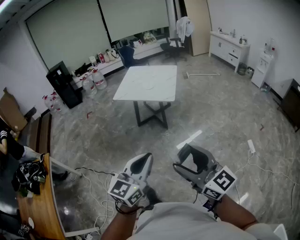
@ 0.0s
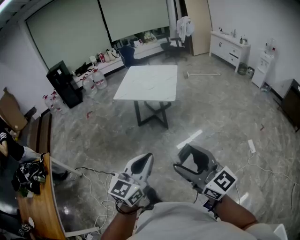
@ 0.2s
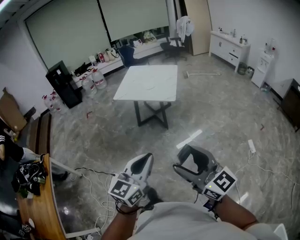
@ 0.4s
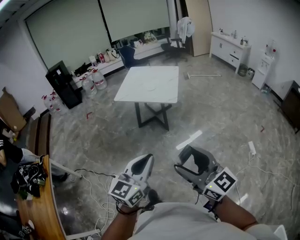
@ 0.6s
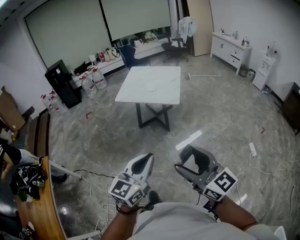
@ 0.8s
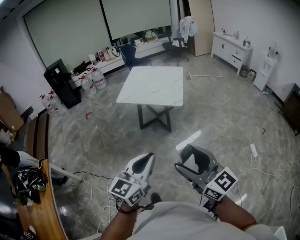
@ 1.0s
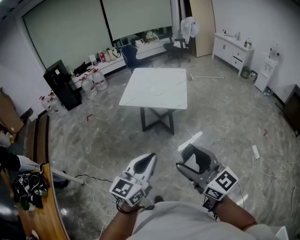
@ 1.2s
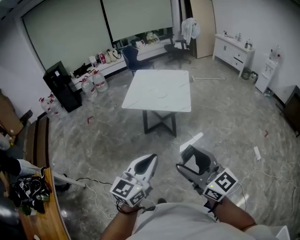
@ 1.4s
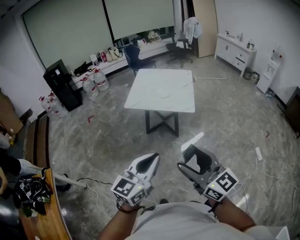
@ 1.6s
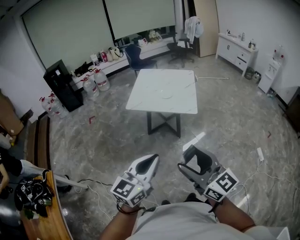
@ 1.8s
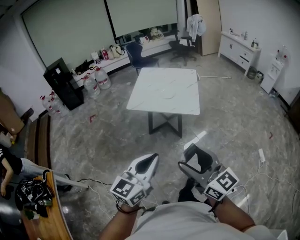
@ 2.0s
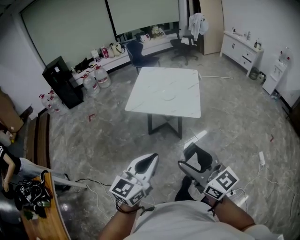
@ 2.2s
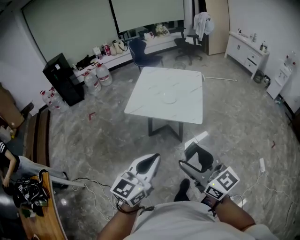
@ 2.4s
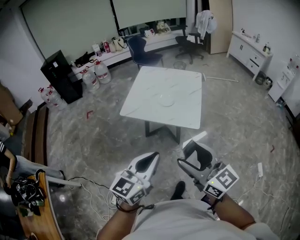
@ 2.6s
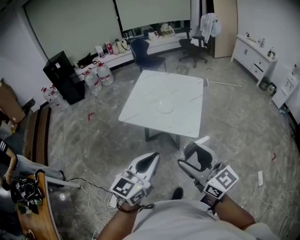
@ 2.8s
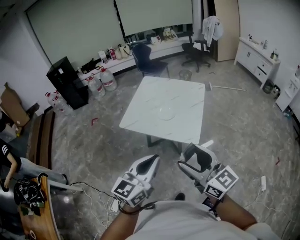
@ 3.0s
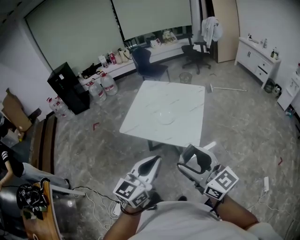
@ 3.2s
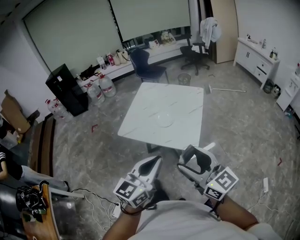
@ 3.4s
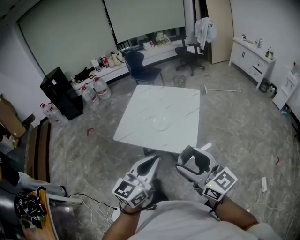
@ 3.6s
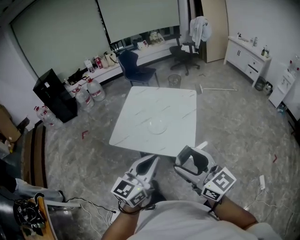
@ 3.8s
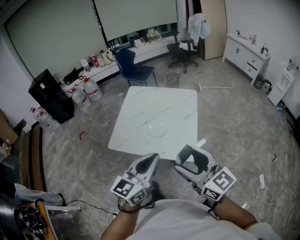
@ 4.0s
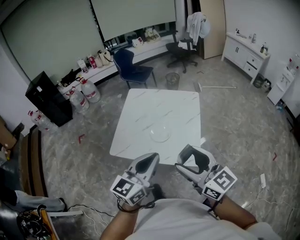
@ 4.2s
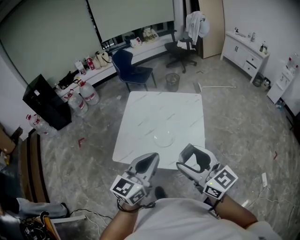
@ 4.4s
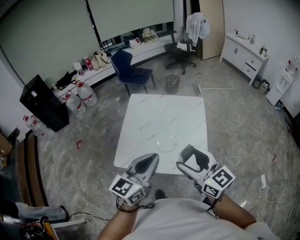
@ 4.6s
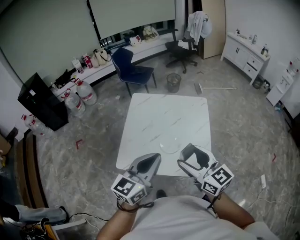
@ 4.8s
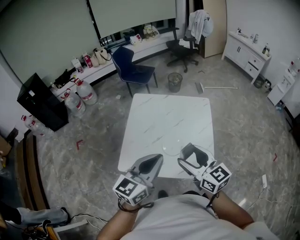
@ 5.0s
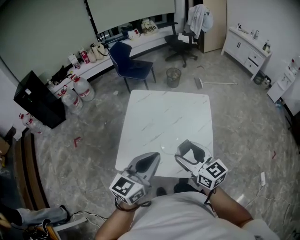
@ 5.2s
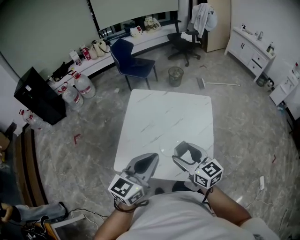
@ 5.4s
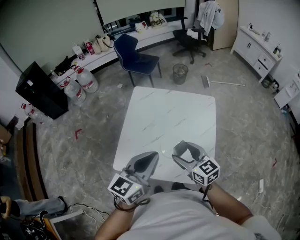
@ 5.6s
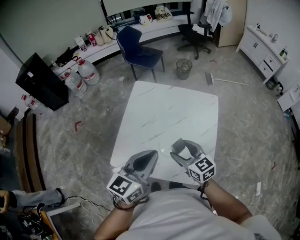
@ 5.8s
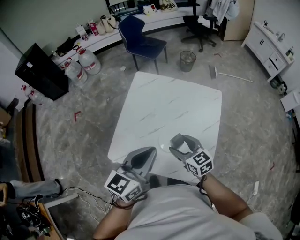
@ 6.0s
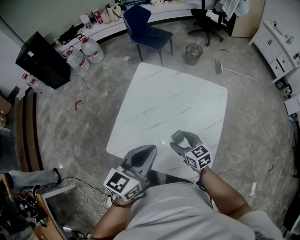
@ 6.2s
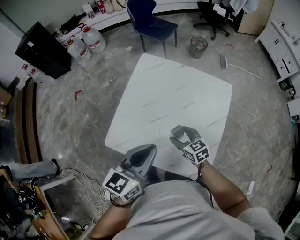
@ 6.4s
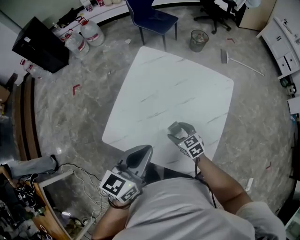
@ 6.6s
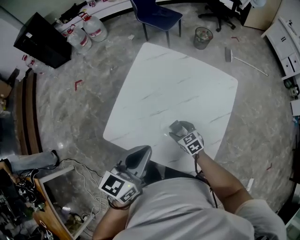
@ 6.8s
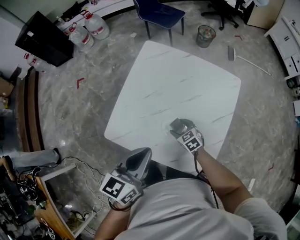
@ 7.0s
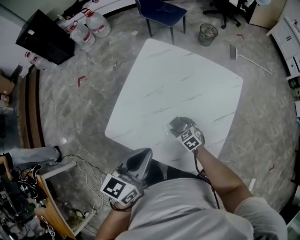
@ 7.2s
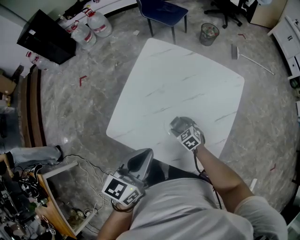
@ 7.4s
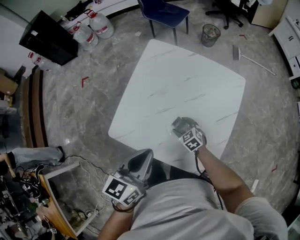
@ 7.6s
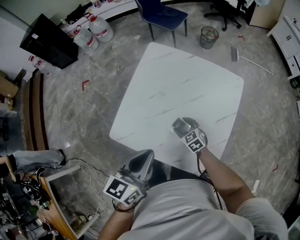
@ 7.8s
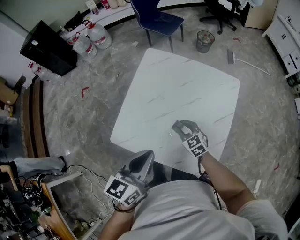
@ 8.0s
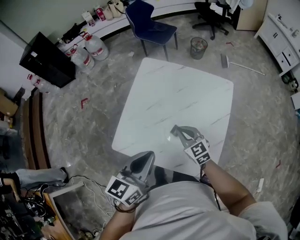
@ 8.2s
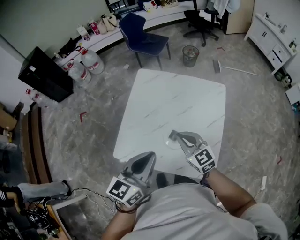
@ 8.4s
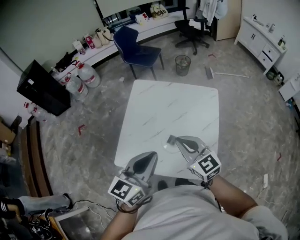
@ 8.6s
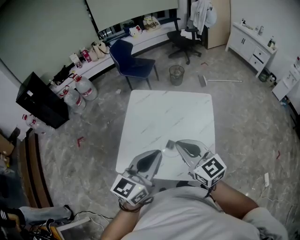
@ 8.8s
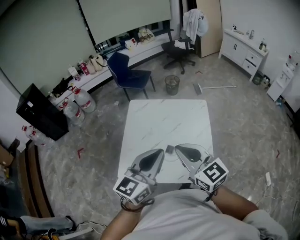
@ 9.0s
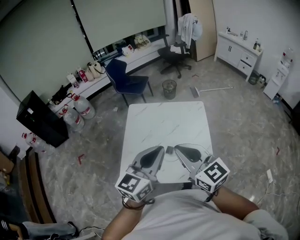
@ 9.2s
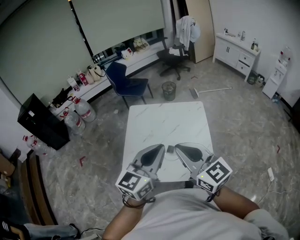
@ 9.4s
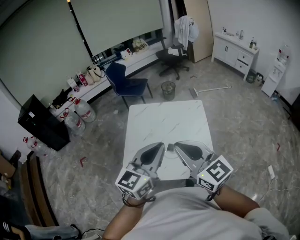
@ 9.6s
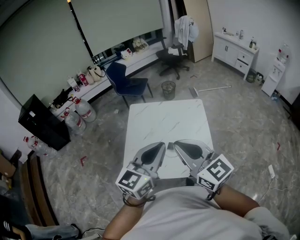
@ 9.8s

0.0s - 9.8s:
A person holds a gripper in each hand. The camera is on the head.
0.0s - 1.4s: Both grippers move forward and to the left, about 25 cm.
1.4s - 2.8s: Both grippers travel together forward, approximately 35 cm.
2.8s - 4.2s: Both grippers move forward, about 30 cm.
4.2s - 5.6s: The left gripper goes approximately 25 cm forward and to the left. Meanwhile the right gripper travels forward and downward by approximately 30 cm.
5.6s - 7.0s: The right gripper travels downward by approximately 30 cm, and tips its fingers downward by about 30 degrees. Meanwhile the left gripper goes approximately 15 cm downward, and changes its angle by about 20 degrees.
7.0s - 8.4s: The right gripper is displaced upward by about 25 cm, turns by about 30 degrees, and closes up. The left gripper travels upward by about 5 cm.
8.4s - 9.8s: The left gripper is displaced upward and backward by some 20 cm, and turns by about 20 degrees. Meanwhile the right gripper goes about 35 cm upward and backward, and swivels roughly 20 degrees.

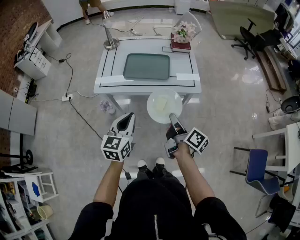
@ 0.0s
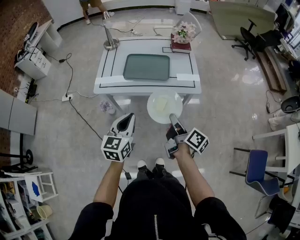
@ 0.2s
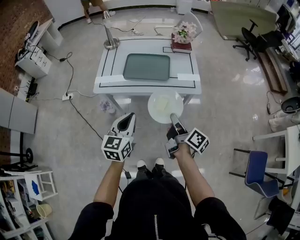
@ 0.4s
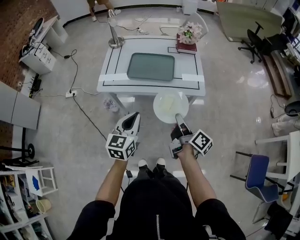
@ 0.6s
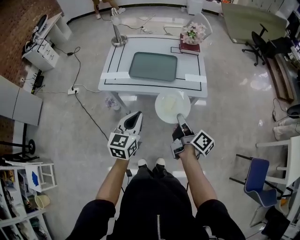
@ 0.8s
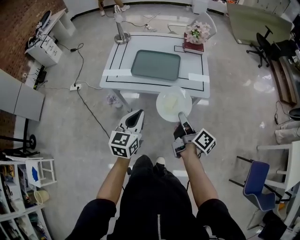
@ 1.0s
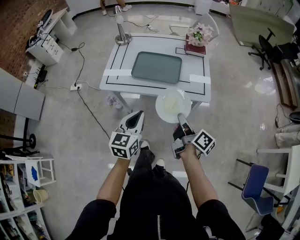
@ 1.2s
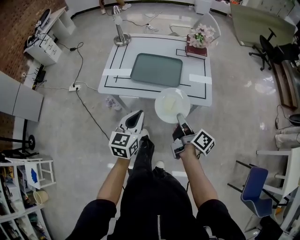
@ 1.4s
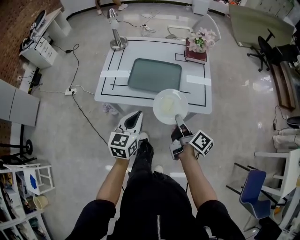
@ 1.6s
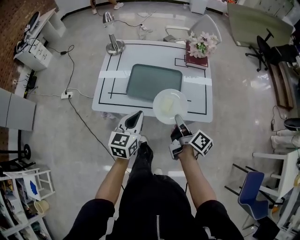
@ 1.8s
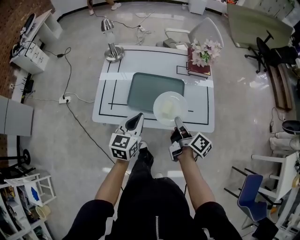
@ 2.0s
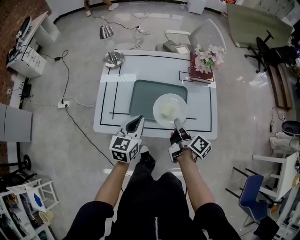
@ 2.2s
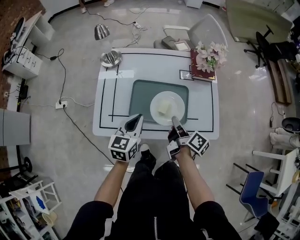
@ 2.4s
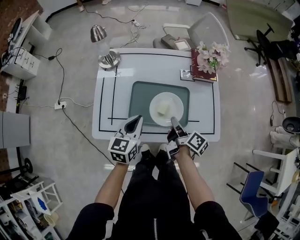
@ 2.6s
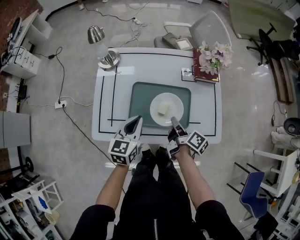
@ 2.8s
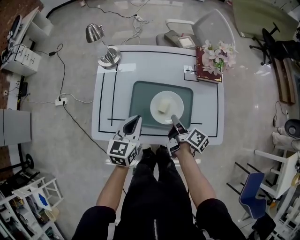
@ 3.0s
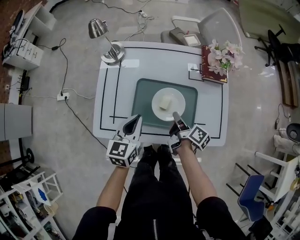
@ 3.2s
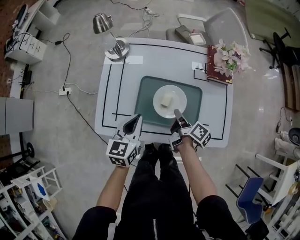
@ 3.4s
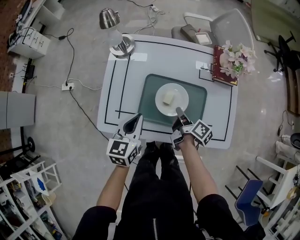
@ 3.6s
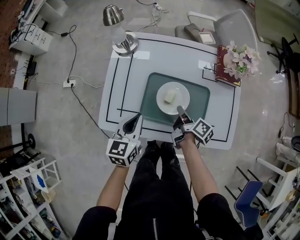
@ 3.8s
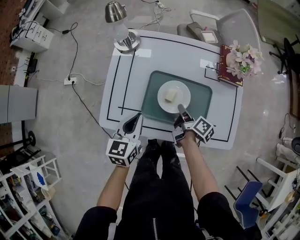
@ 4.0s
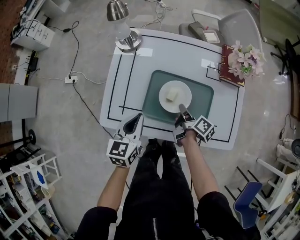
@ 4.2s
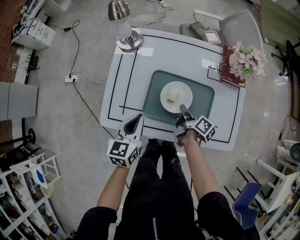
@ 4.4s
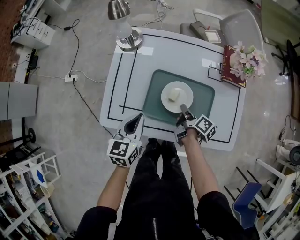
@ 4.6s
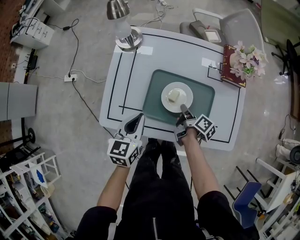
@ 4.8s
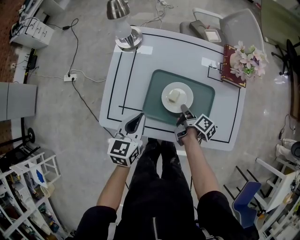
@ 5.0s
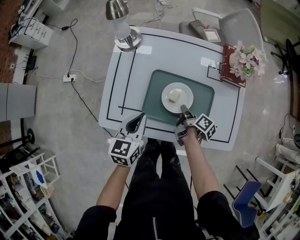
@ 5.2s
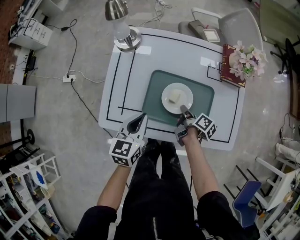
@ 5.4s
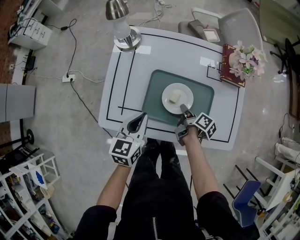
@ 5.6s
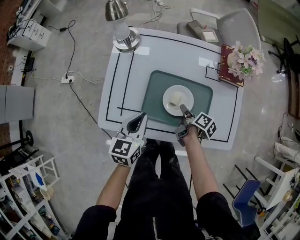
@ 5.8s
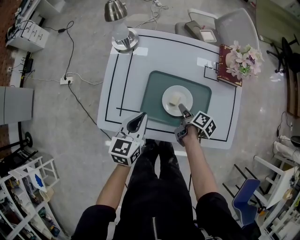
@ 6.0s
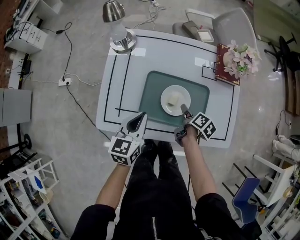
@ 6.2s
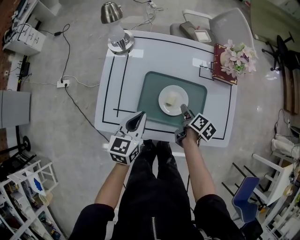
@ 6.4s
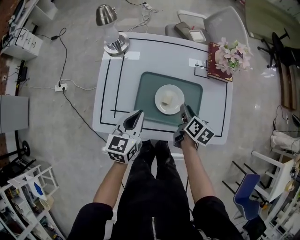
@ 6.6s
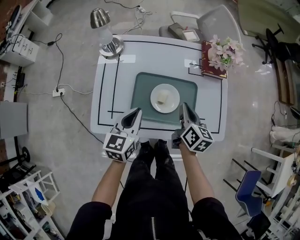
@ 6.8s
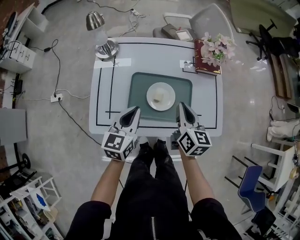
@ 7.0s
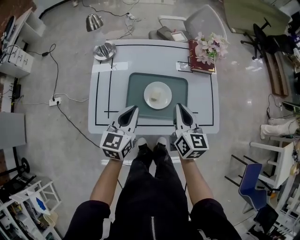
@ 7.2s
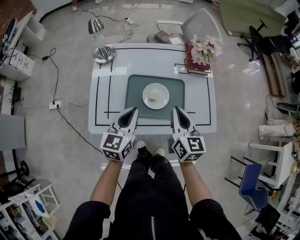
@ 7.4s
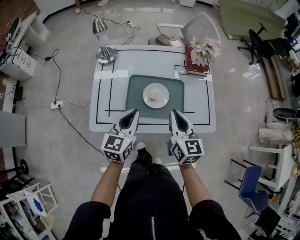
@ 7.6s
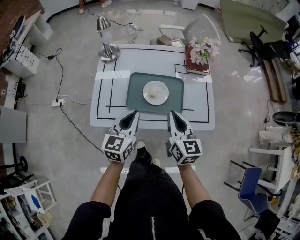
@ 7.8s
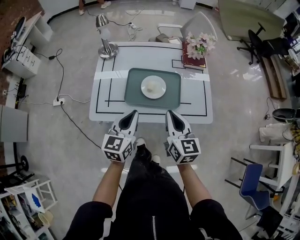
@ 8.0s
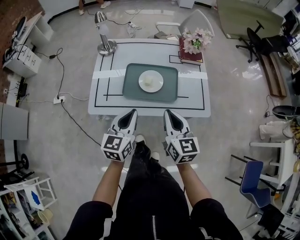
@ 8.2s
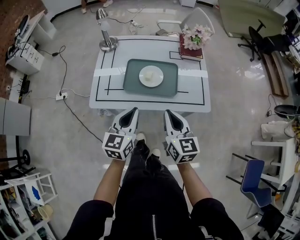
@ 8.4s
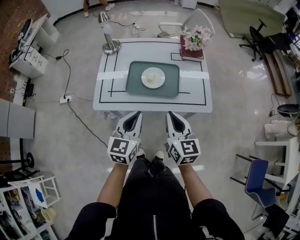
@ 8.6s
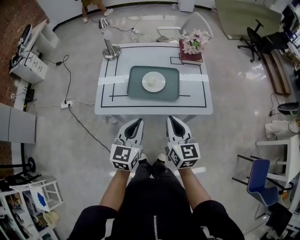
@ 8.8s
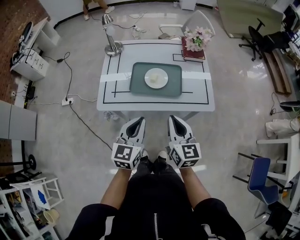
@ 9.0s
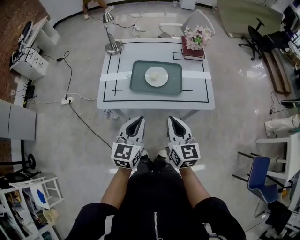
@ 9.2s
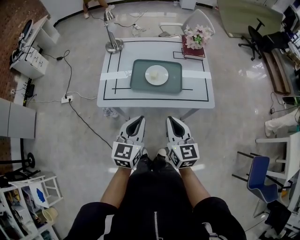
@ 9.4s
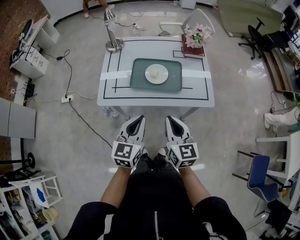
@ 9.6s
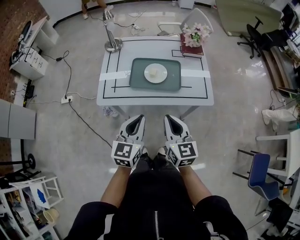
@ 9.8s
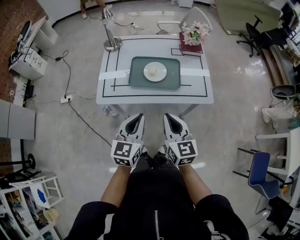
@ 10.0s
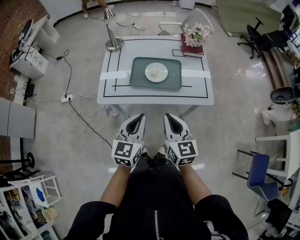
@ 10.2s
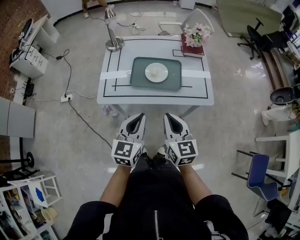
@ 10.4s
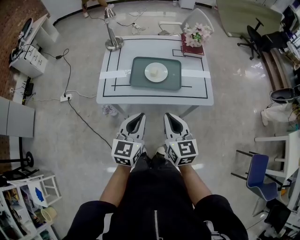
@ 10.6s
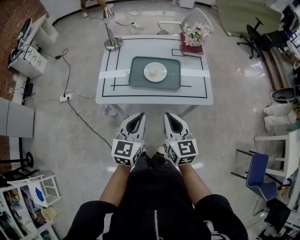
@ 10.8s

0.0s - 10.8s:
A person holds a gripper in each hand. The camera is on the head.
0.0s - 1.6s: Both grippers move forward, about 15 cm.
1.6s - 3.0s: The left gripper travels forward by roughly 25 cm. Meanwhile the right gripper moves forward and downward, some 30 cm.
3.0s - 4.6s: The left gripper travels to the left by roughly 5 cm. The right gripper is displaced downward by some 10 cm.
4.6s - 6.2s: The right gripper opens.
6.2s - 7.8s: The right gripper is displaced upward and backward by approximately 30 cm, rotates around the line of its fingers by about 50 degrees, counterclockwise from behind, and closes up. Meanwhile the left gripper moves upward and backward, about 10 cm.
7.8s - 9.2s: The grippers both shift backward by about 15 cm.
9.2s - 10.8s: There are only small adjustments of the grippers.

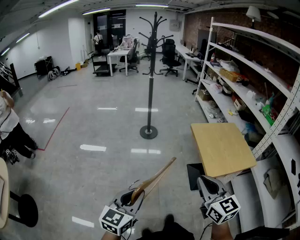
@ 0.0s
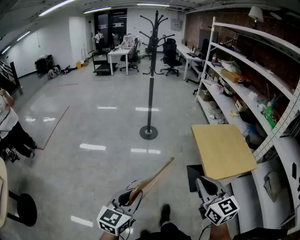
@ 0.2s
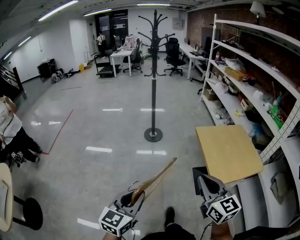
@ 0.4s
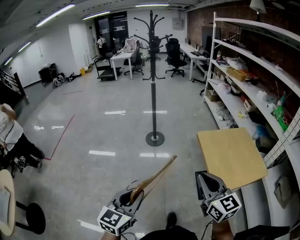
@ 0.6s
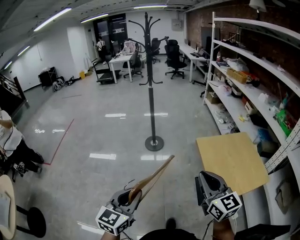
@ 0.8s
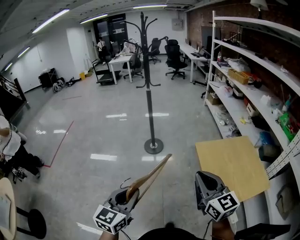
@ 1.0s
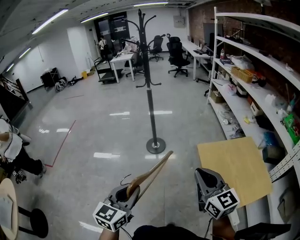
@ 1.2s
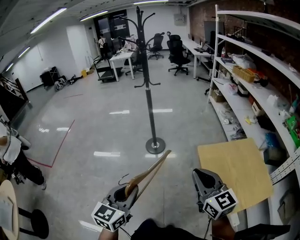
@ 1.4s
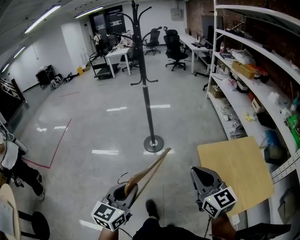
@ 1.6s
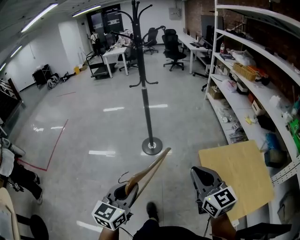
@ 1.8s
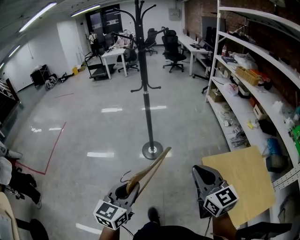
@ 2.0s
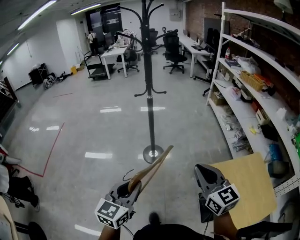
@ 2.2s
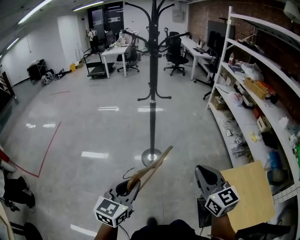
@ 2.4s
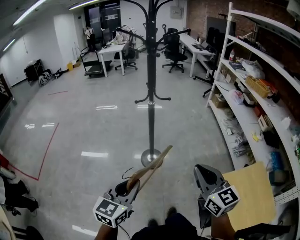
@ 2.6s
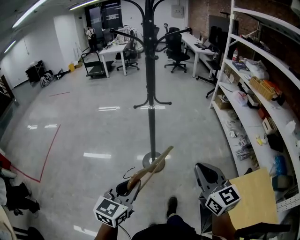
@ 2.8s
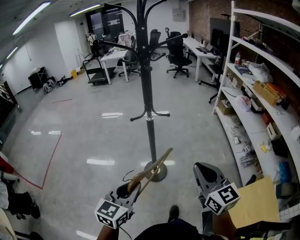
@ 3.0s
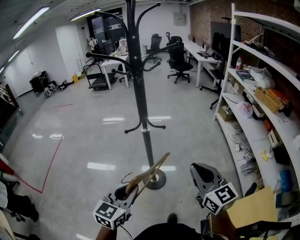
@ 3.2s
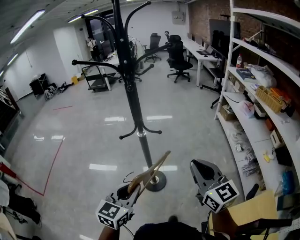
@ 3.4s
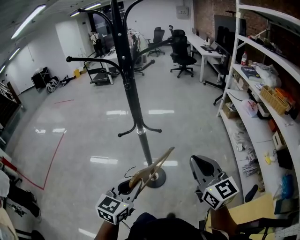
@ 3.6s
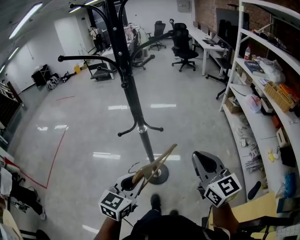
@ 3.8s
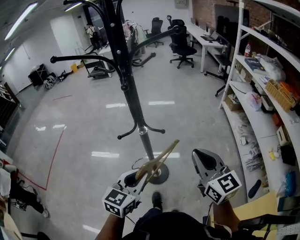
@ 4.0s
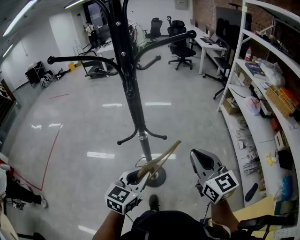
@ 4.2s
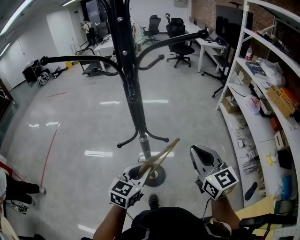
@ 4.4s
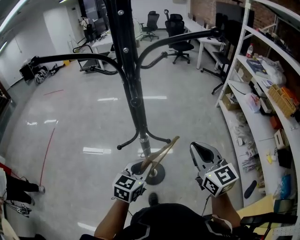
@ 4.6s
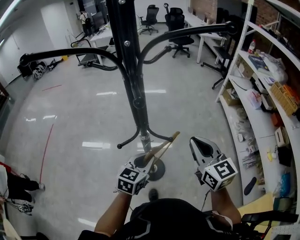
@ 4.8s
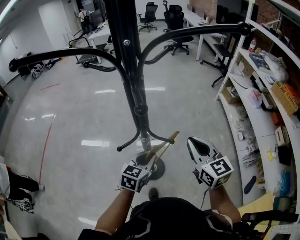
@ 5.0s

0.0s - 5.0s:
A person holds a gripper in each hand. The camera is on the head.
0.0s - 1.6s: Both grippers move forward, some 35 cm.
1.6s - 3.4s: The pair of grippers is taken forward, some 50 cm.
3.4s - 5.0s: The right gripper is displaced forward by roughly 20 cm. The left gripper heads forward and downward, covering approximately 30 cm.
